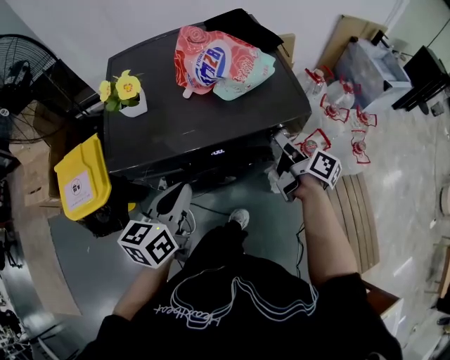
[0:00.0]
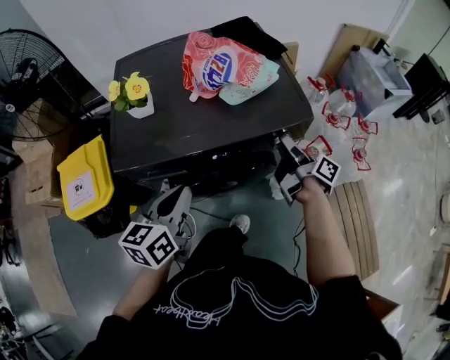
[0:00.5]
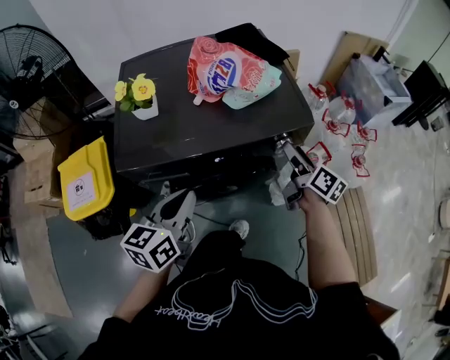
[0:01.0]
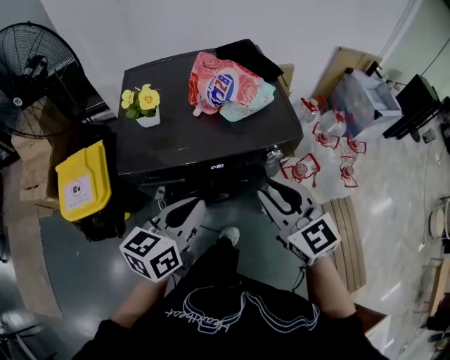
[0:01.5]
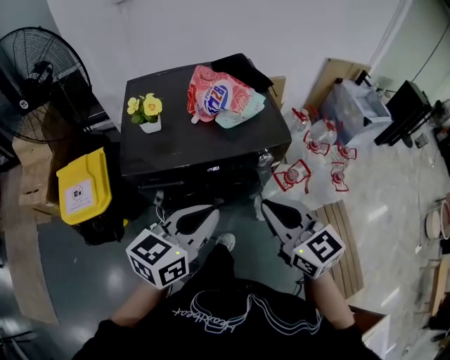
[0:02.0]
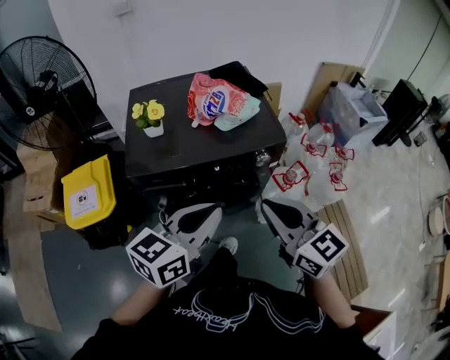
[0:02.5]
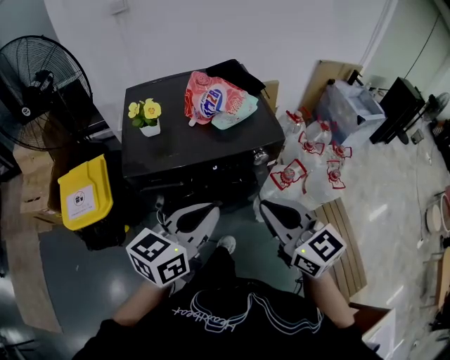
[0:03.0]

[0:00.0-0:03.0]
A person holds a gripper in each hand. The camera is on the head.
0.0 to 1.5 s: The left gripper moves upward, approximately 5 cm, while the right gripper moves upward, backward and to the left, about 25 cm, rotates around the line of its fingers by about 80 degrees, counterclockwise from behind, and closes.
1.5 to 3.0 s: The right gripper moves backward and upward, about 10 cm. The left gripper shifts some 10 cm upward and backward.

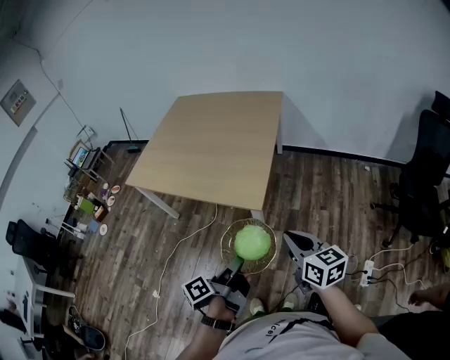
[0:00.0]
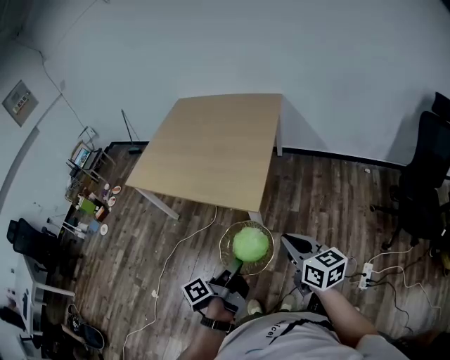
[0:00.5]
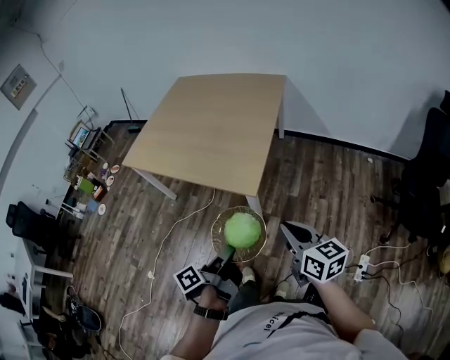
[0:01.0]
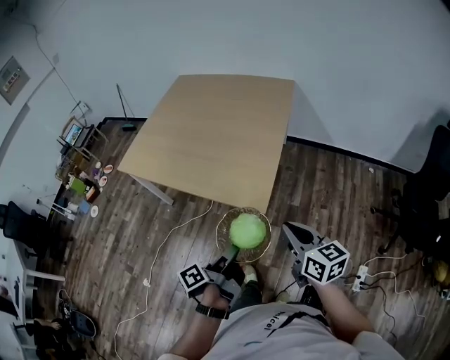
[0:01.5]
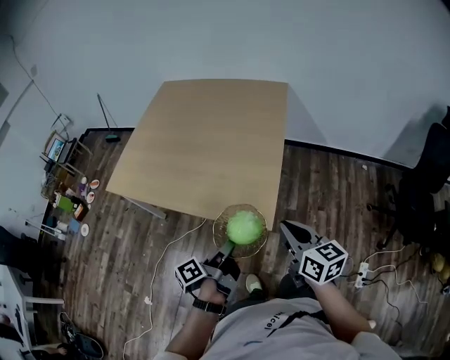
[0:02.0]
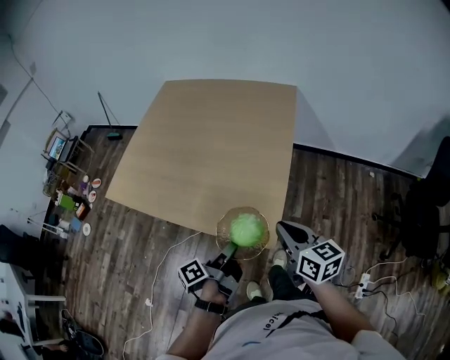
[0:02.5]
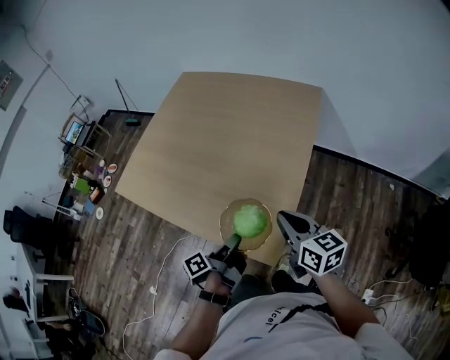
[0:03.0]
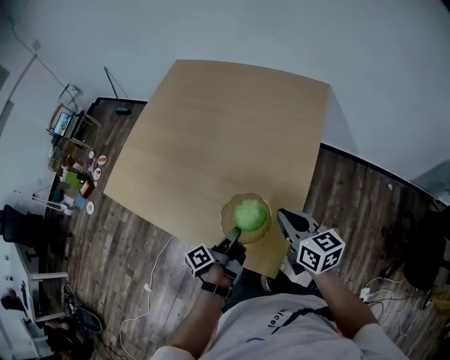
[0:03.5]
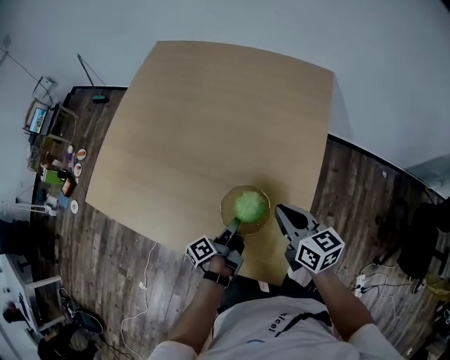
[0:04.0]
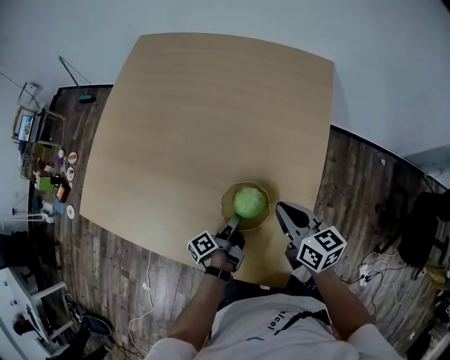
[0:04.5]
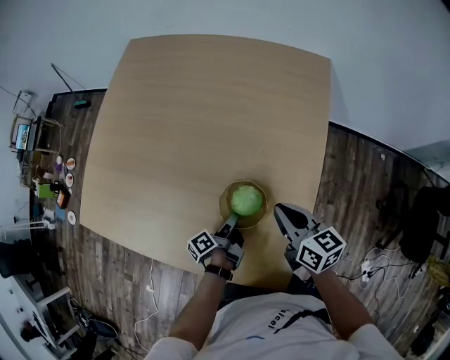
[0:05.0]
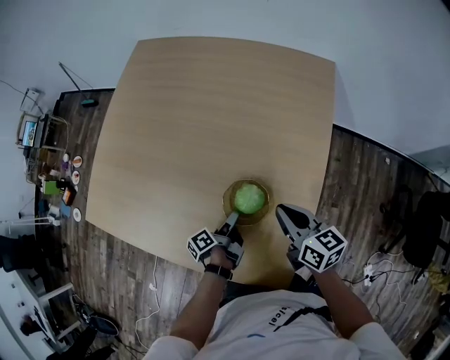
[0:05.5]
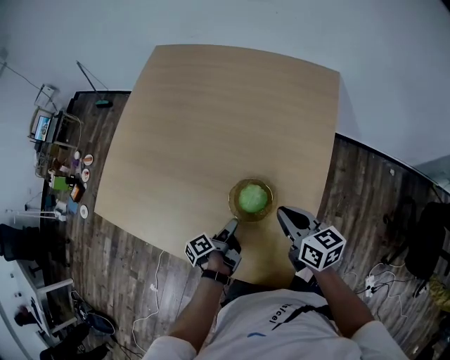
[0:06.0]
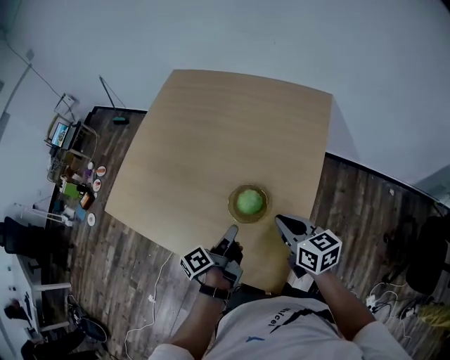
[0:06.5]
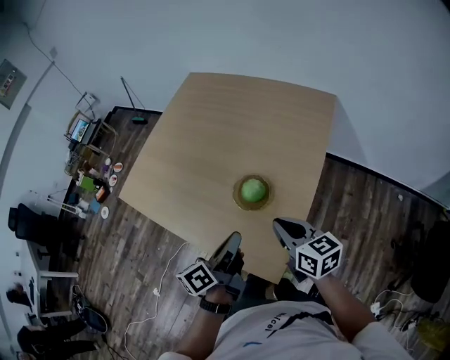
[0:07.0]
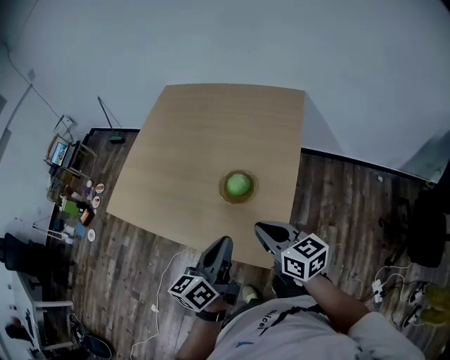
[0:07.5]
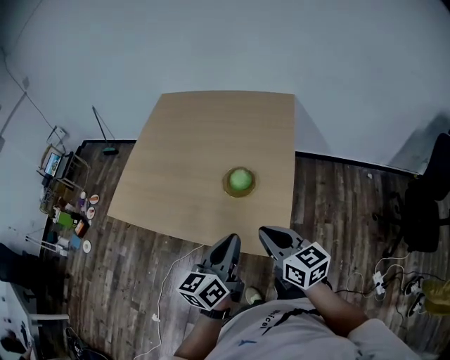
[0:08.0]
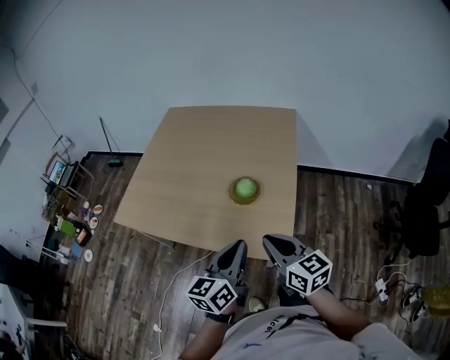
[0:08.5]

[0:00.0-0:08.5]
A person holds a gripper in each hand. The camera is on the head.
0.0 to 2.0 s: The right gripper moves roughly 20 cm.
2.0 to 4.0 s: The right gripper shifts by some 35 cm.
6.5 to 8.5 s: The right gripper changes place by some 30 cm.

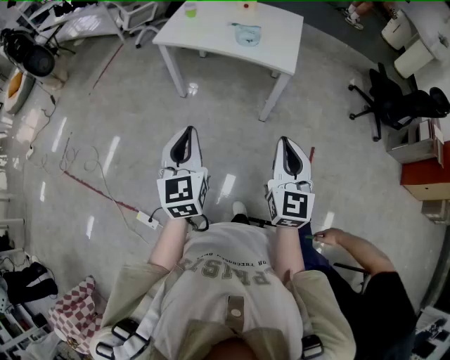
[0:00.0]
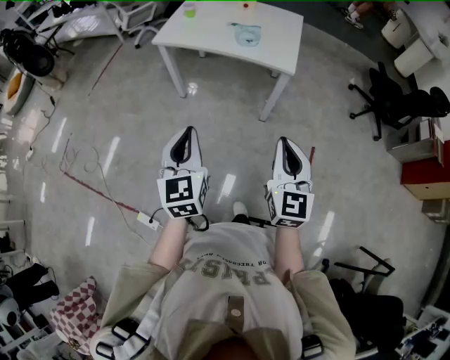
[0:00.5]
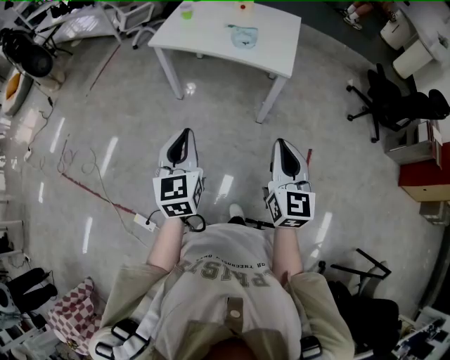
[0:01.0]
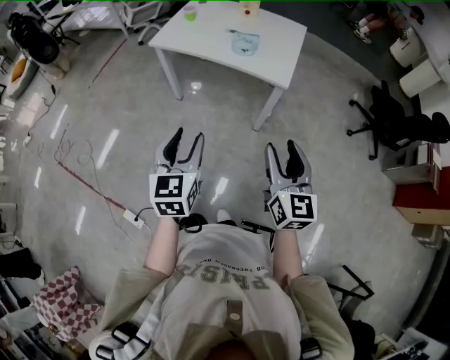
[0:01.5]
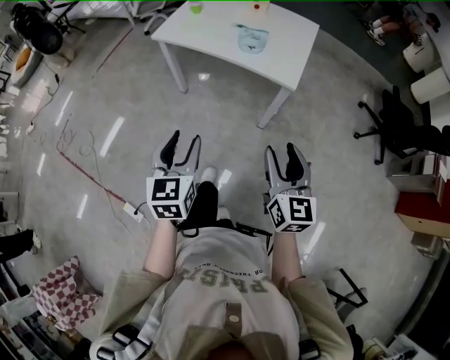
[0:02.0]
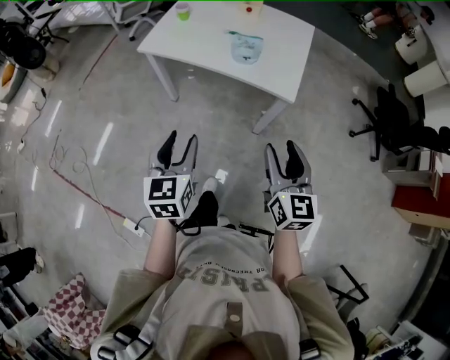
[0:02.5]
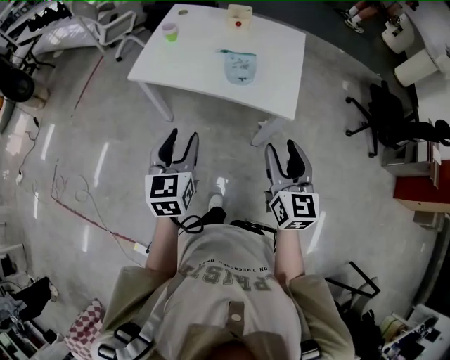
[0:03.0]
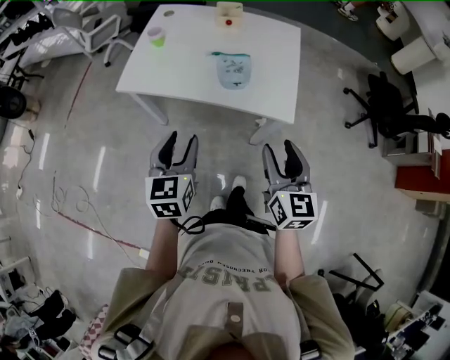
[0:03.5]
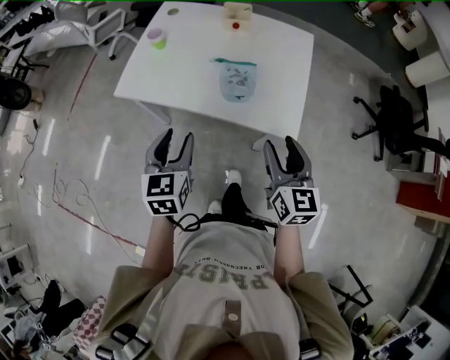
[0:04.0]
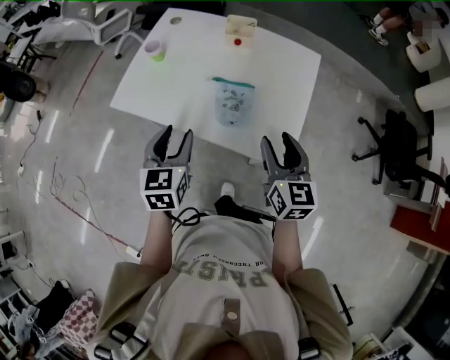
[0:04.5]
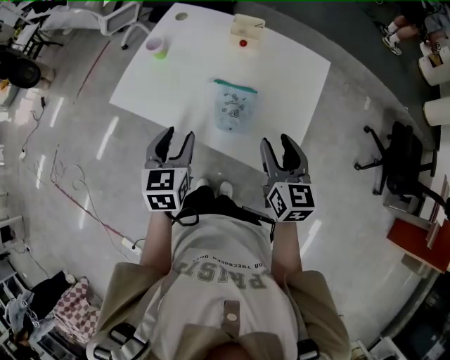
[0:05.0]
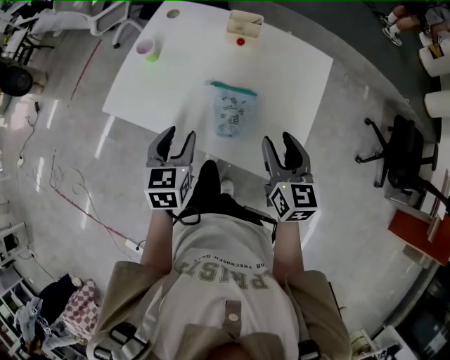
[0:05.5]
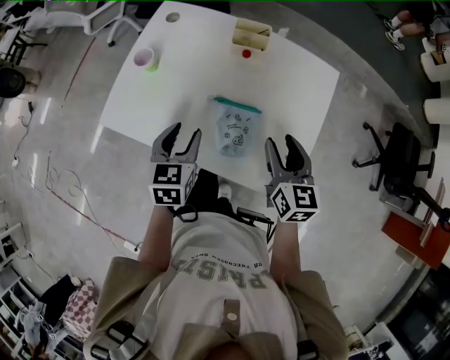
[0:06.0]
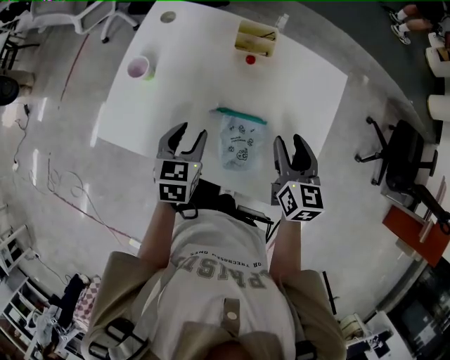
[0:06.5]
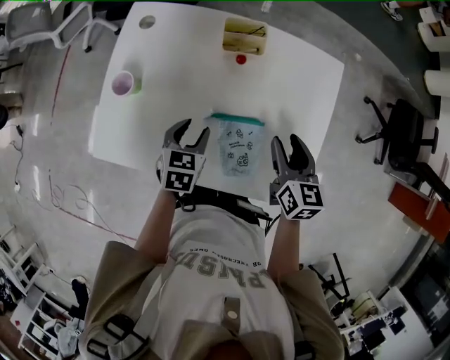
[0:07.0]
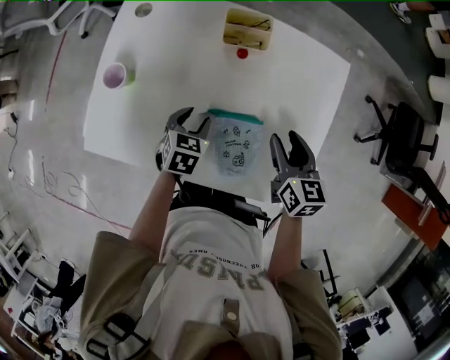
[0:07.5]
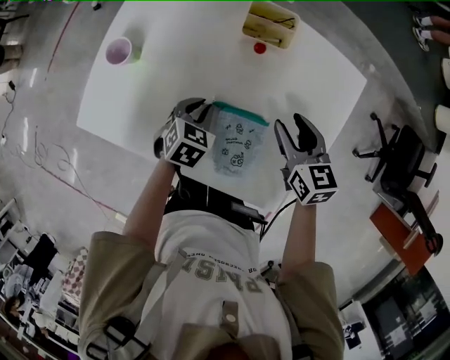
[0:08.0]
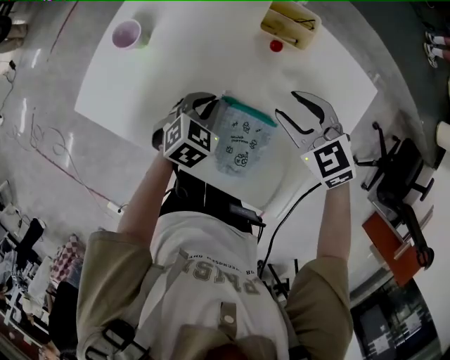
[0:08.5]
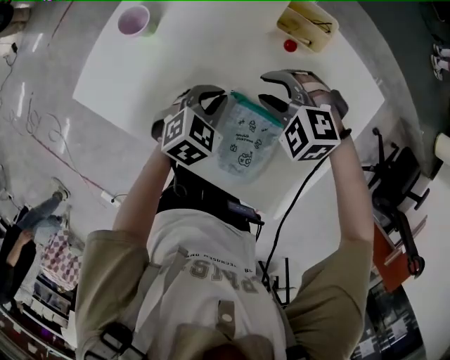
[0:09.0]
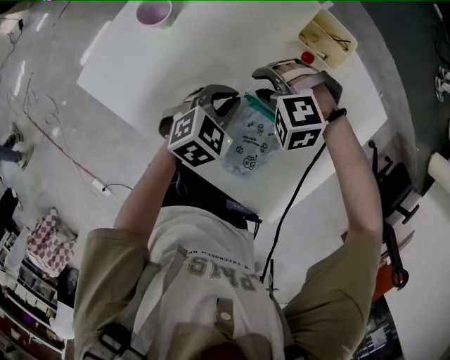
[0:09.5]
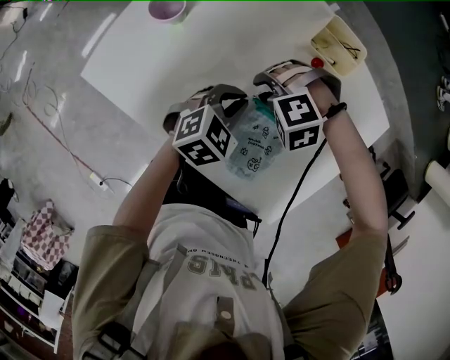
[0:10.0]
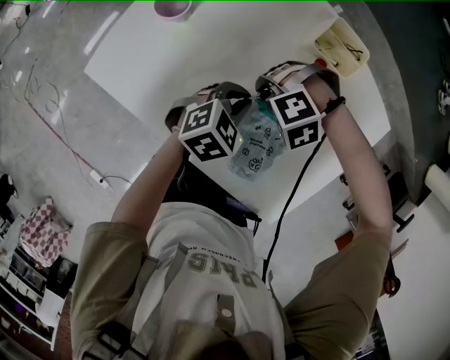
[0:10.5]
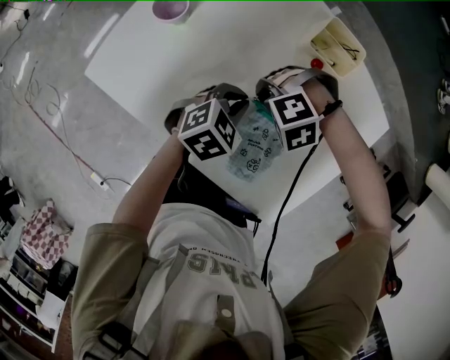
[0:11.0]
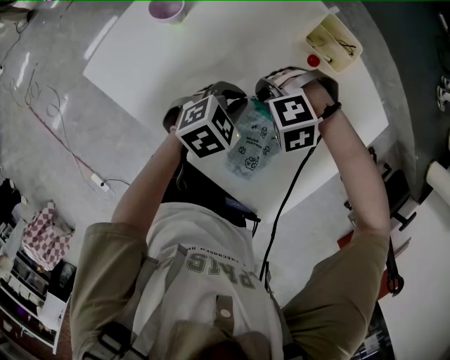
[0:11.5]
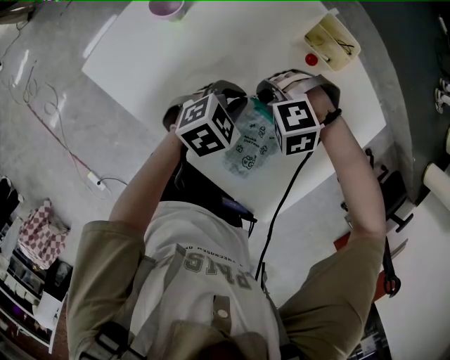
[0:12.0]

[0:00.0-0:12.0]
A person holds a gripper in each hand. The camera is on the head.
0.0 to 2.0 s: Both grippers move forward and to the right, some 10 cm. The right gripper opens, while the left gripper opens up.
2.0 to 4.0 s: Both grippers travel together forward, approximately 35 cm.
4.0 to 6.0 s: Both grippers travel together forward, roughly 25 cm.
6.0 to 8.0 s: The right gripper heads forward and downward, covering about 15 cm. Meanwhile the left gripper heads downward and forward, covering some 20 cm, swivels some 30 degrees, and closes up.
8.0 to 10.0 s: The right gripper changes place by approximately 20 cm, and twists approximately 100 degrees counterclockwise, seen from behind.
10.0 to 12.0 s: The right gripper closes up.

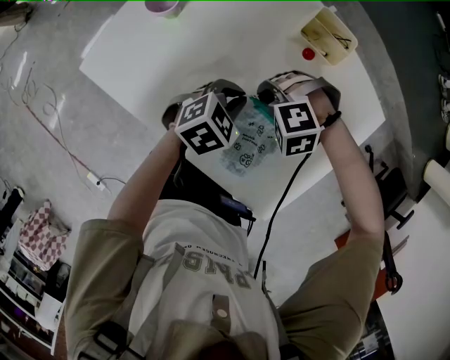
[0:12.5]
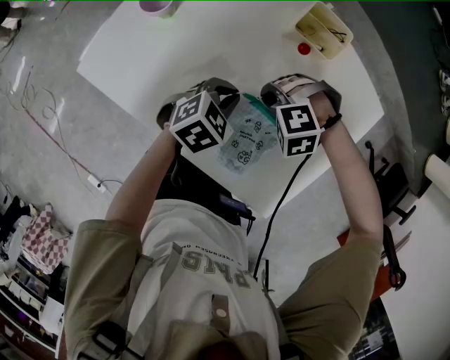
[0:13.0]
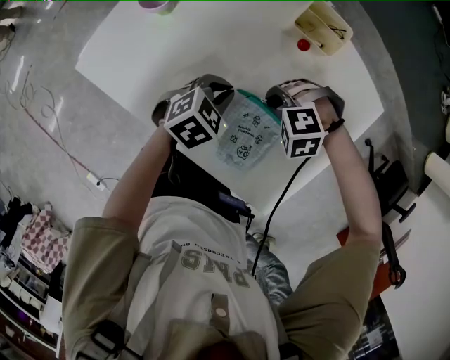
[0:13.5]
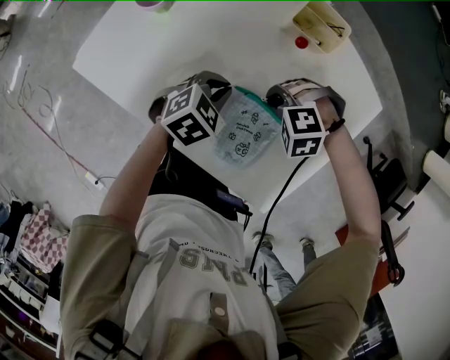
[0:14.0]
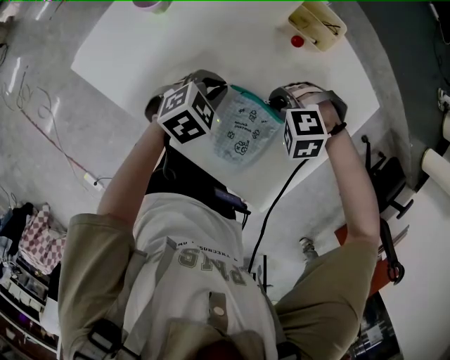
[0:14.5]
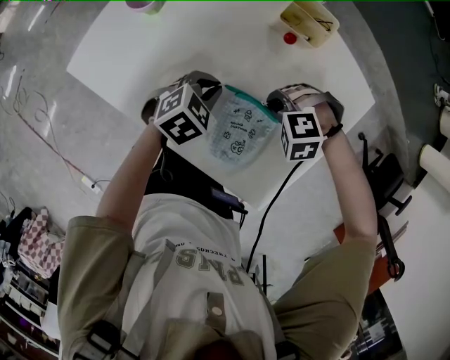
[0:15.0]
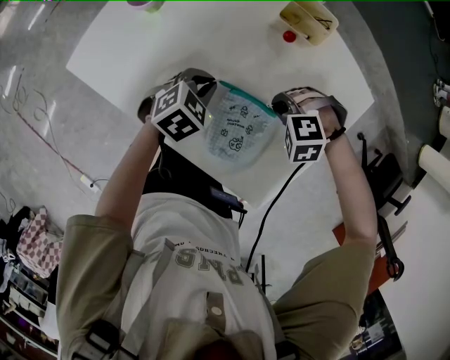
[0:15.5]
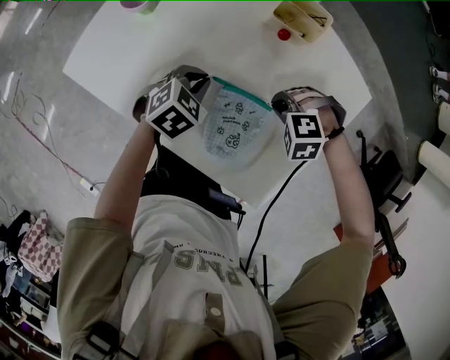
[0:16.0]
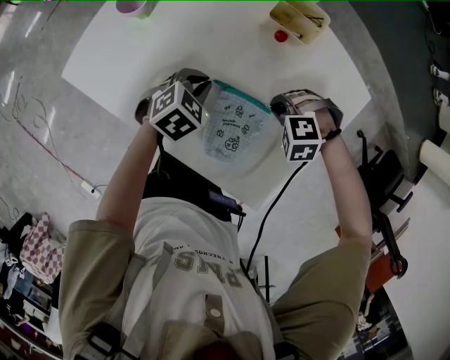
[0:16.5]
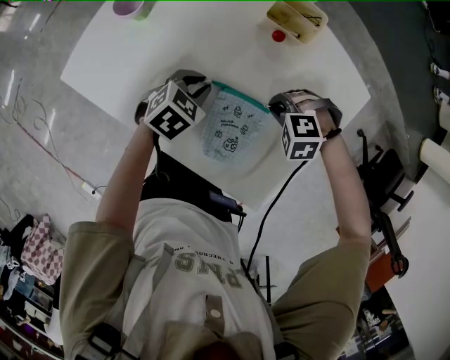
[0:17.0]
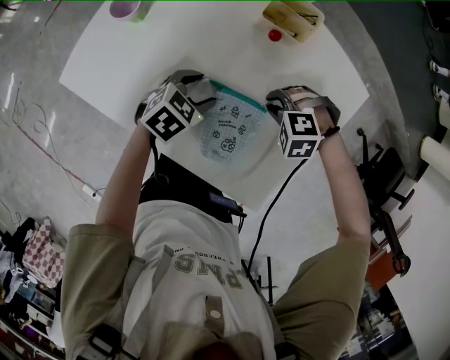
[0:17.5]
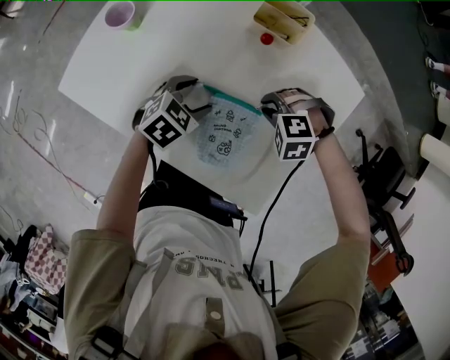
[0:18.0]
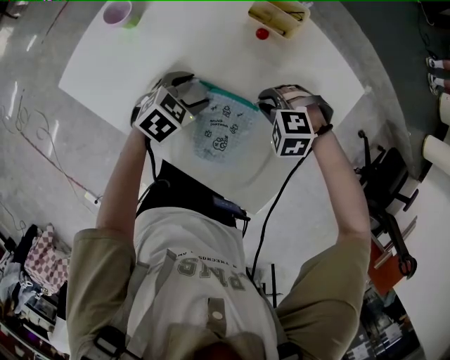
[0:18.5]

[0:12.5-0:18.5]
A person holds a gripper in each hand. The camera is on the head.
12.5 to 14.5 s: The right gripper shifts by some 5 cm.
14.5 to 16.5 s: The right gripper shifts by roughly 5 cm.
16.5 to 18.5 s: The left gripper opens its fingers.
